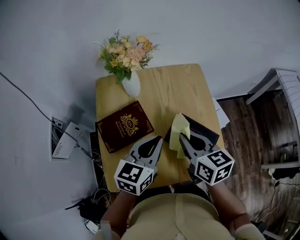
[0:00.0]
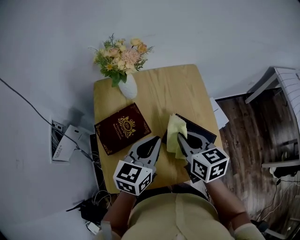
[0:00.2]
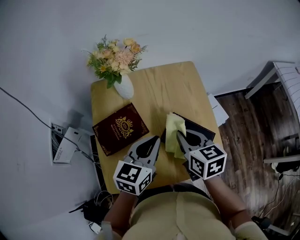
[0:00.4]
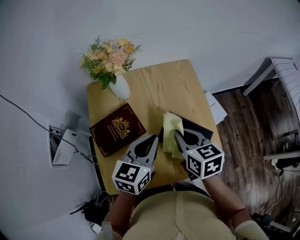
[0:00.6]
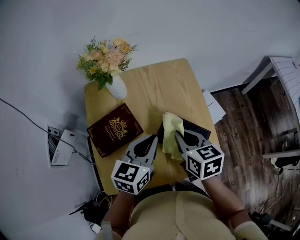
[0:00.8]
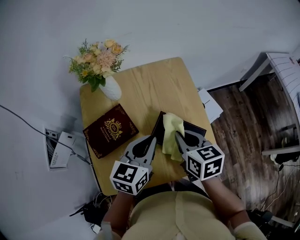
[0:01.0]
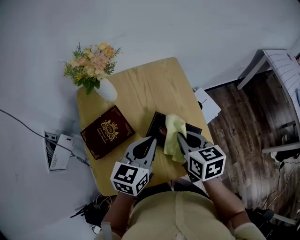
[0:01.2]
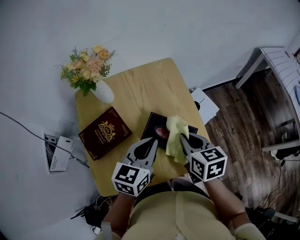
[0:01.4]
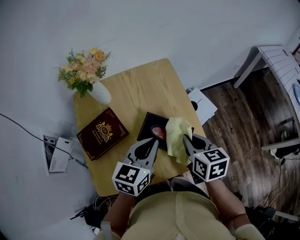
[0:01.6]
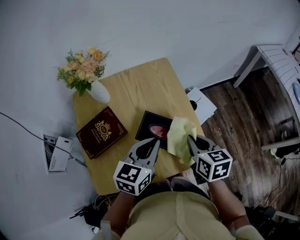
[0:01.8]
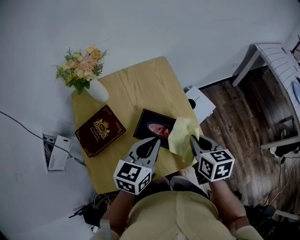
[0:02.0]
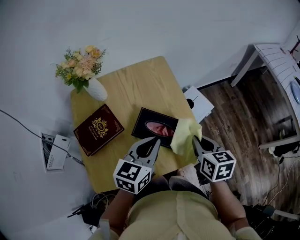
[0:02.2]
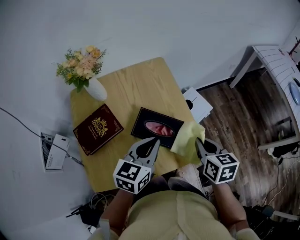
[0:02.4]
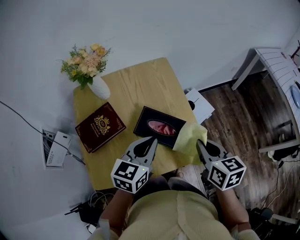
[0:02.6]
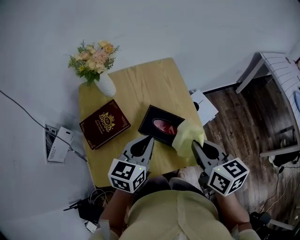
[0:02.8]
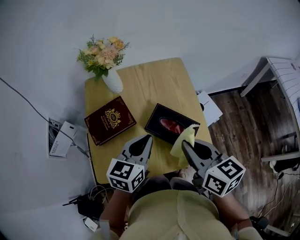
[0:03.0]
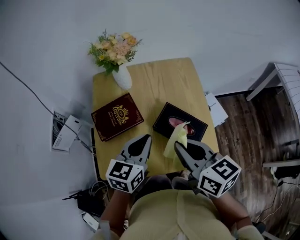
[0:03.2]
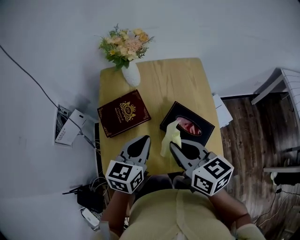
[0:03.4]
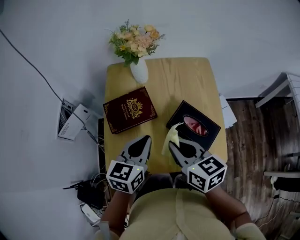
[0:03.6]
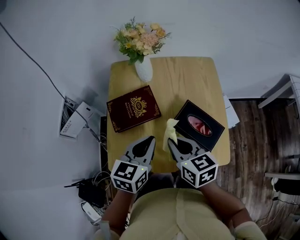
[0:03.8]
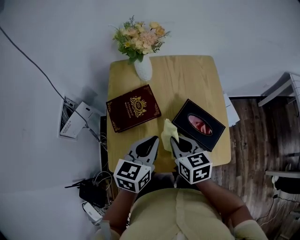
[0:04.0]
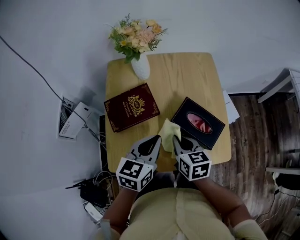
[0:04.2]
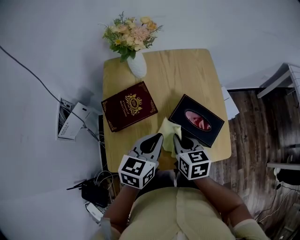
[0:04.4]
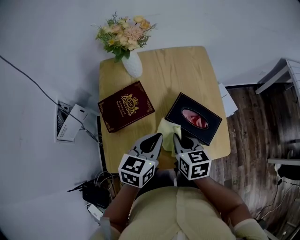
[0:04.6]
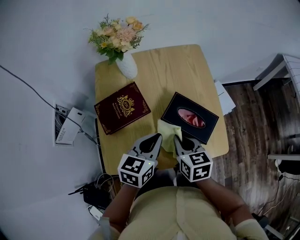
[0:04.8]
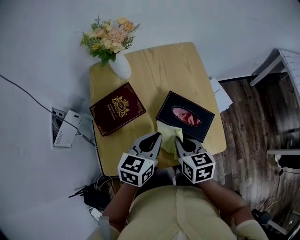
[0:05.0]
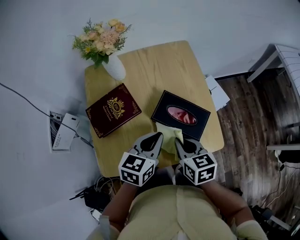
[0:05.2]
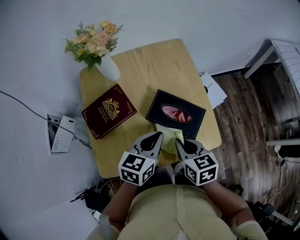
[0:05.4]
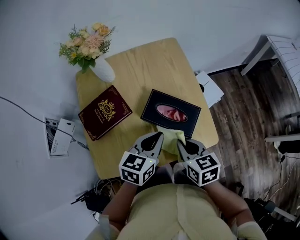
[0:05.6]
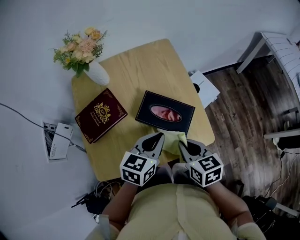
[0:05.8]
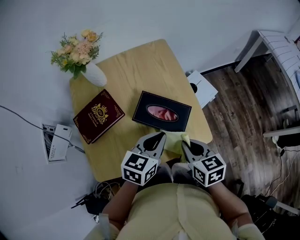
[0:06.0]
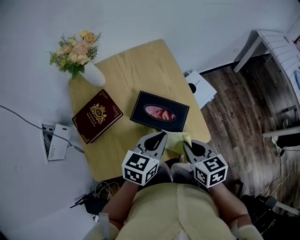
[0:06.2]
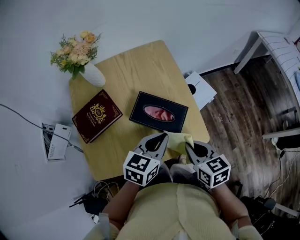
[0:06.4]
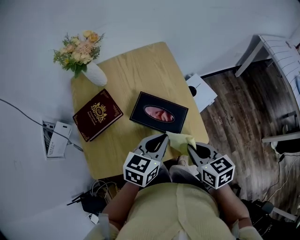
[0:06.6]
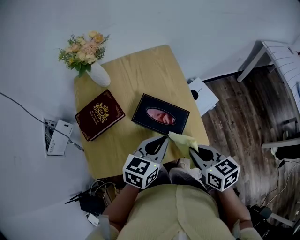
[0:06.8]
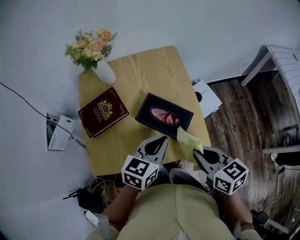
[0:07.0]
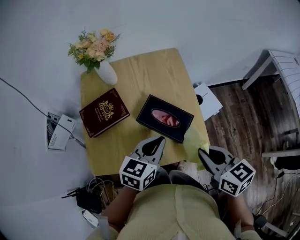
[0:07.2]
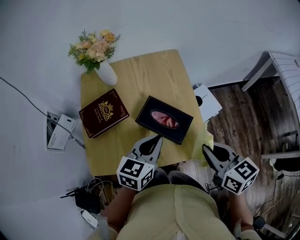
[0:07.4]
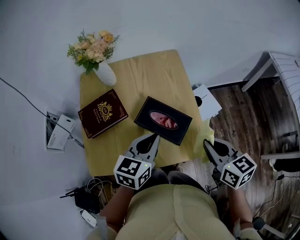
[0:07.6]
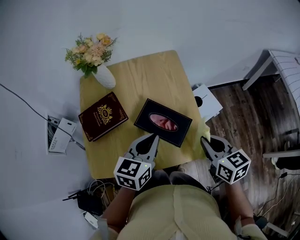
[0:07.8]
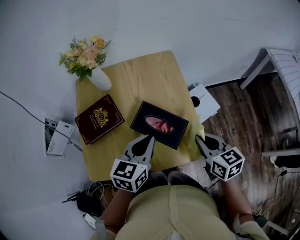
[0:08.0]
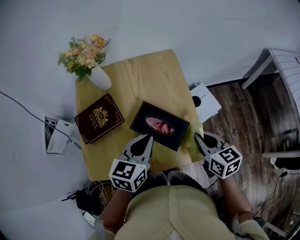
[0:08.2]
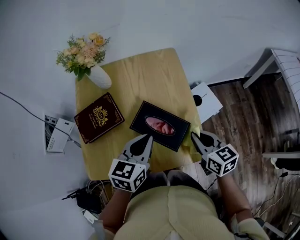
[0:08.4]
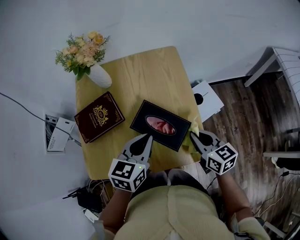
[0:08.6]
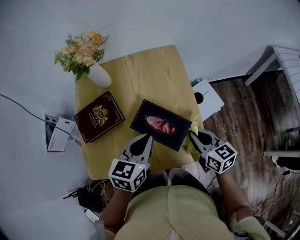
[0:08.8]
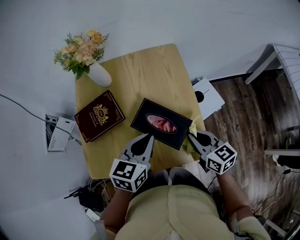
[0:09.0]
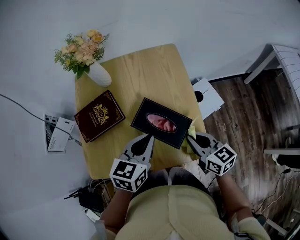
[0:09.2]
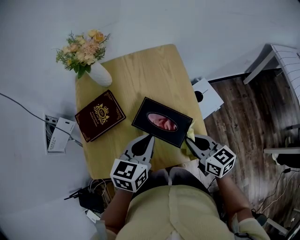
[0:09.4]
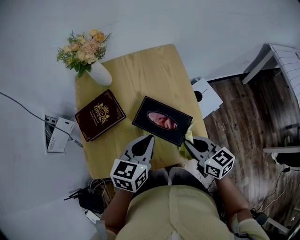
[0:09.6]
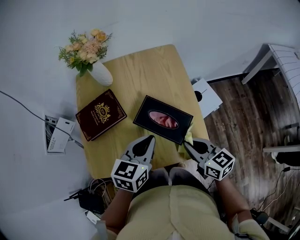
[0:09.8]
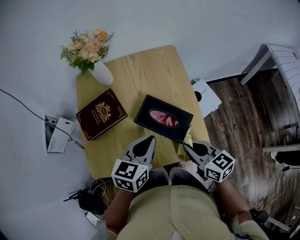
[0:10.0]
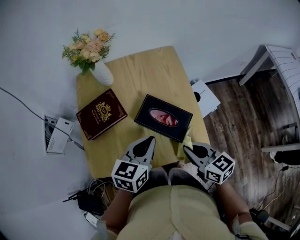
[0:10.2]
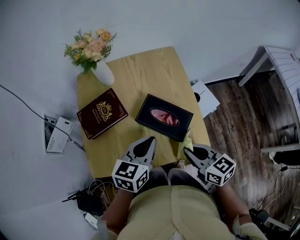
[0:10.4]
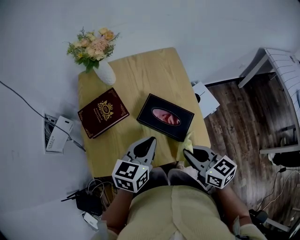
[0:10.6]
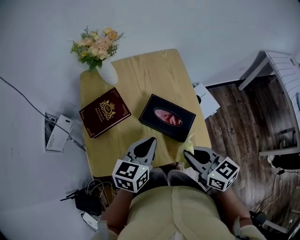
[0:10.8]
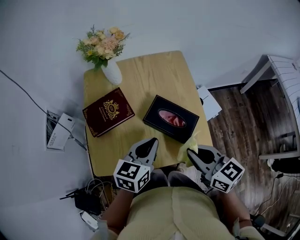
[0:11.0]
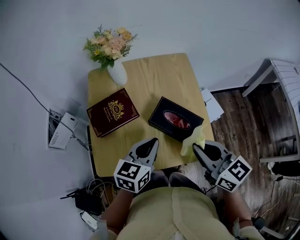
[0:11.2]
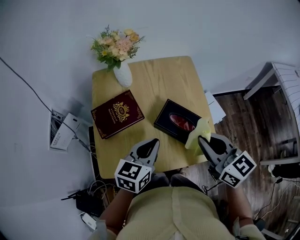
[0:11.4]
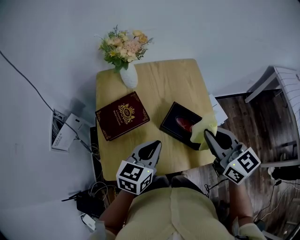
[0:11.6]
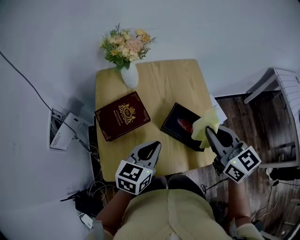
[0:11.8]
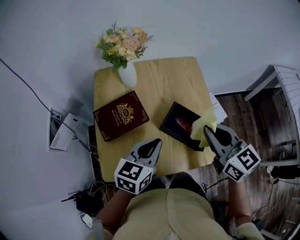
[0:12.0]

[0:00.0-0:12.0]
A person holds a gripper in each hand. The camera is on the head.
0:00.0 to 0:01.6: The two grippers go some 10 cm to the right.
0:01.6 to 0:03.0: The right gripper goes roughly 10 cm upward and backward, reaches approximately 10 cm to the right, then returns, and rotates about 20 degrees. The left gripper ends up roughly 5 cm from where it was.
0:03.0 to 0:04.4: The right gripper is displaced downward and to the left by about 20 cm. The left gripper goes about 5 cm to the left.
0:04.4 to 0:06.0: Both grippers move to the right, approximately 15 cm.
0:06.0 to 0:07.6: The right gripper heads upward and to the right, covering approximately 10 cm.
0:07.6 to 0:09.0: The right gripper moves downward and forward, about 10 cm.
0:09.0 to 0:10.4: The right gripper travels backward by roughly 10 cm.
0:10.4 to 0:12.0: The right gripper is displaced upward and forward by roughly 15 cm. Meanwhile the left gripper shifts roughly 5 cm to the left.

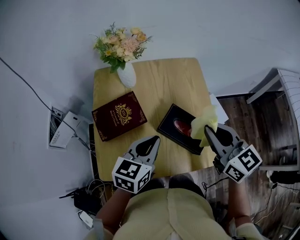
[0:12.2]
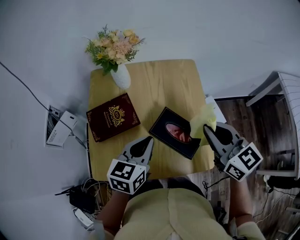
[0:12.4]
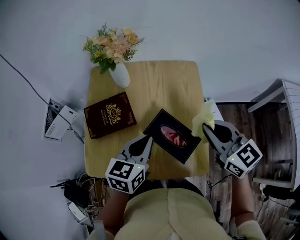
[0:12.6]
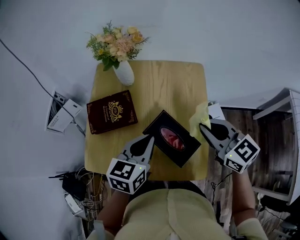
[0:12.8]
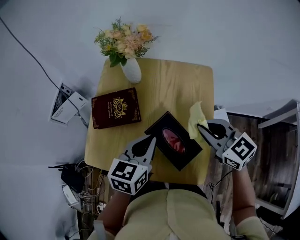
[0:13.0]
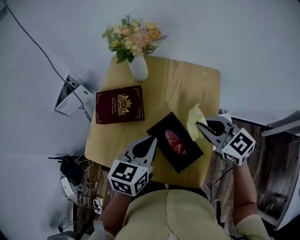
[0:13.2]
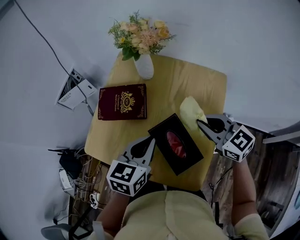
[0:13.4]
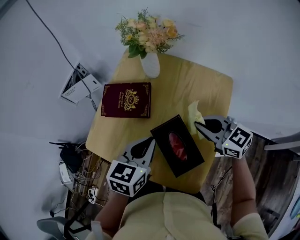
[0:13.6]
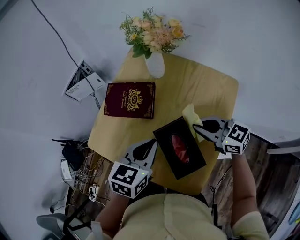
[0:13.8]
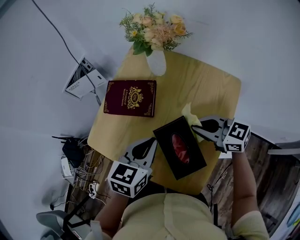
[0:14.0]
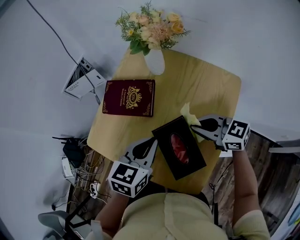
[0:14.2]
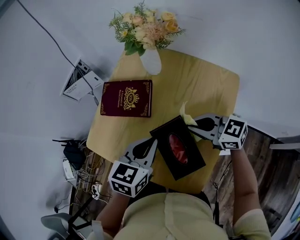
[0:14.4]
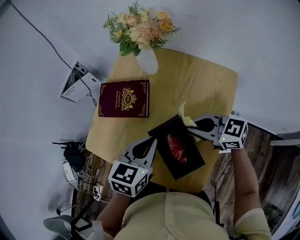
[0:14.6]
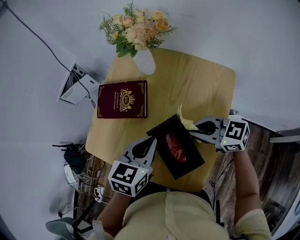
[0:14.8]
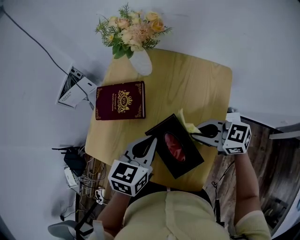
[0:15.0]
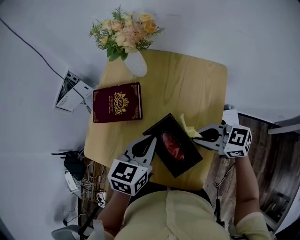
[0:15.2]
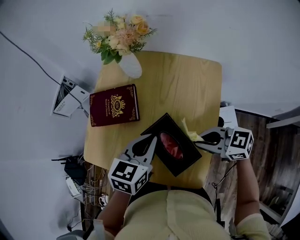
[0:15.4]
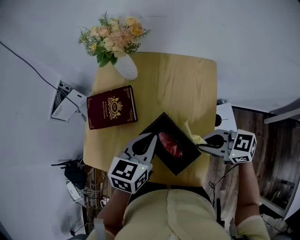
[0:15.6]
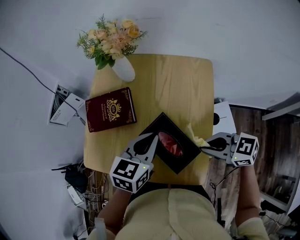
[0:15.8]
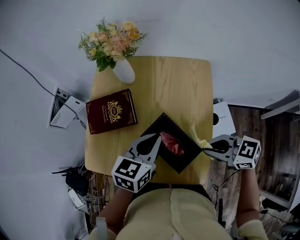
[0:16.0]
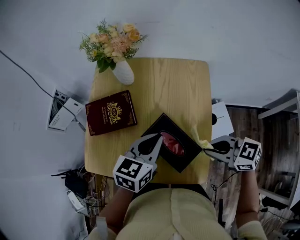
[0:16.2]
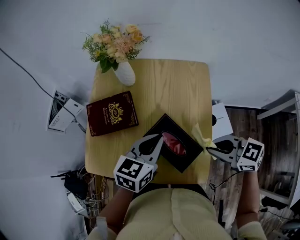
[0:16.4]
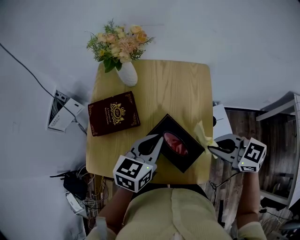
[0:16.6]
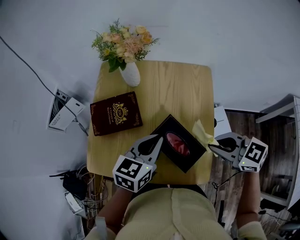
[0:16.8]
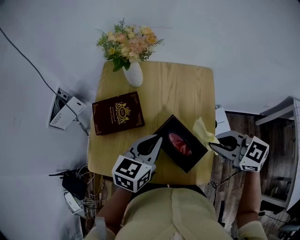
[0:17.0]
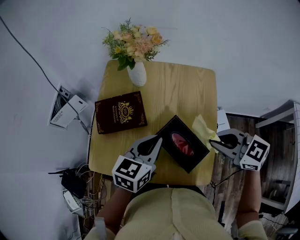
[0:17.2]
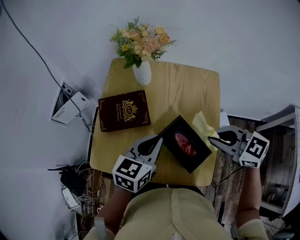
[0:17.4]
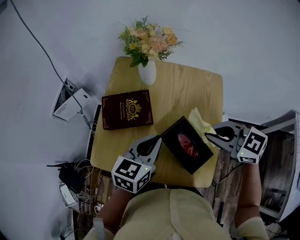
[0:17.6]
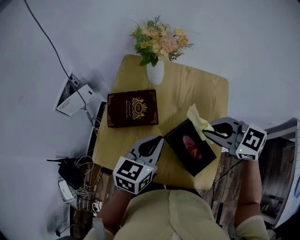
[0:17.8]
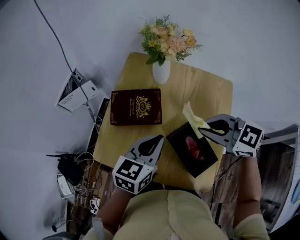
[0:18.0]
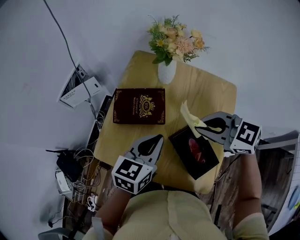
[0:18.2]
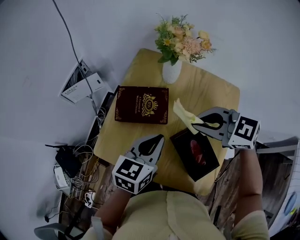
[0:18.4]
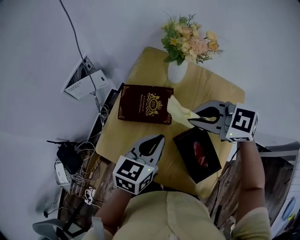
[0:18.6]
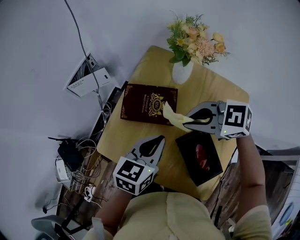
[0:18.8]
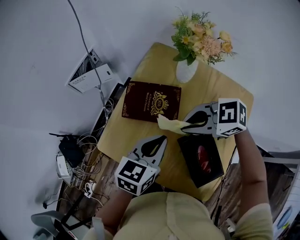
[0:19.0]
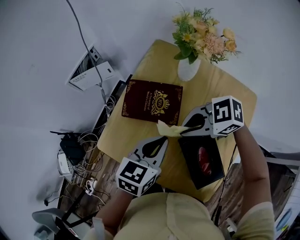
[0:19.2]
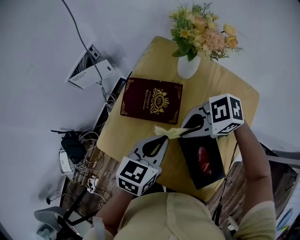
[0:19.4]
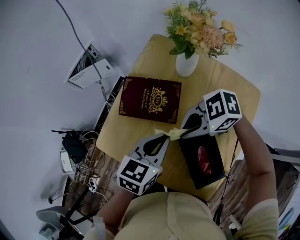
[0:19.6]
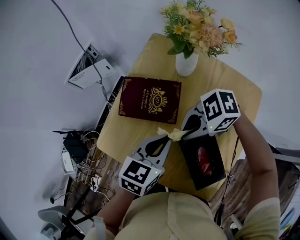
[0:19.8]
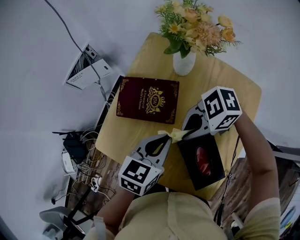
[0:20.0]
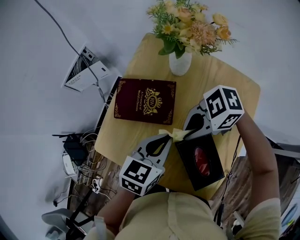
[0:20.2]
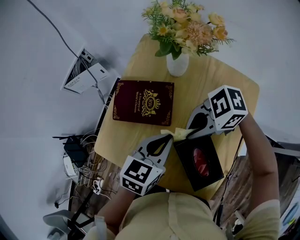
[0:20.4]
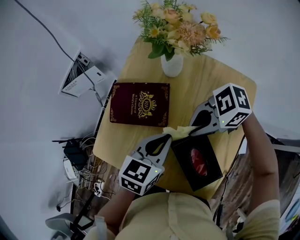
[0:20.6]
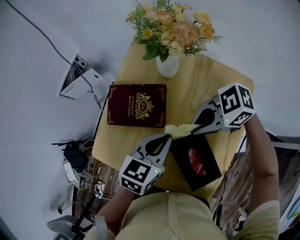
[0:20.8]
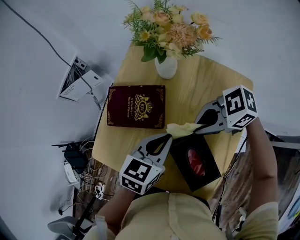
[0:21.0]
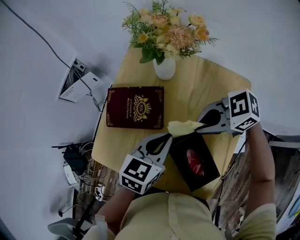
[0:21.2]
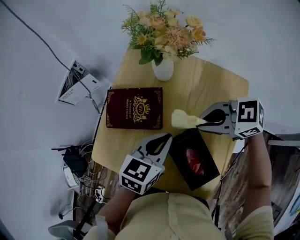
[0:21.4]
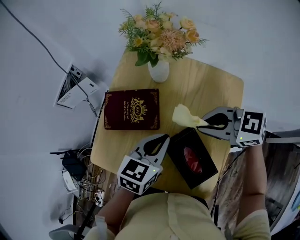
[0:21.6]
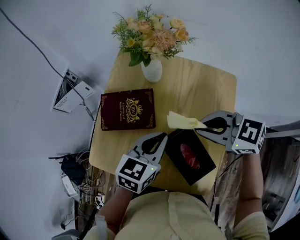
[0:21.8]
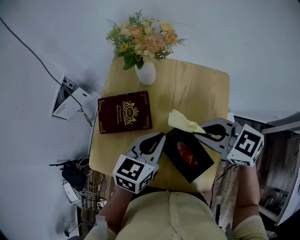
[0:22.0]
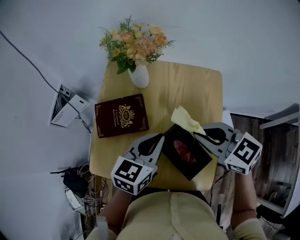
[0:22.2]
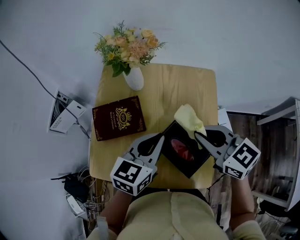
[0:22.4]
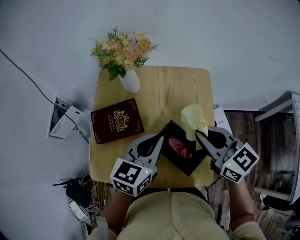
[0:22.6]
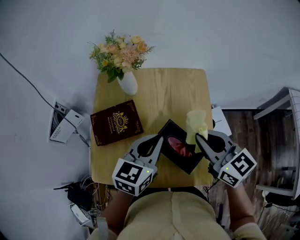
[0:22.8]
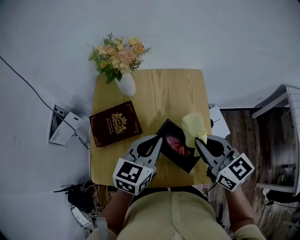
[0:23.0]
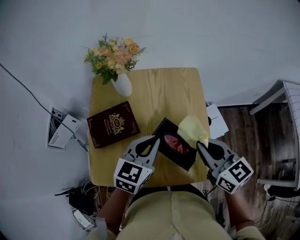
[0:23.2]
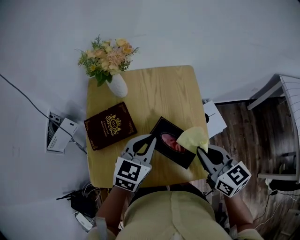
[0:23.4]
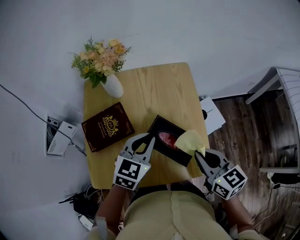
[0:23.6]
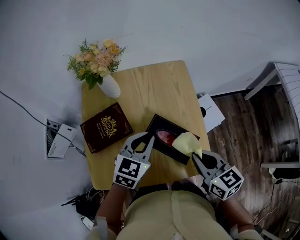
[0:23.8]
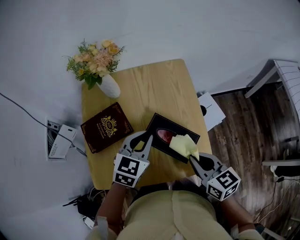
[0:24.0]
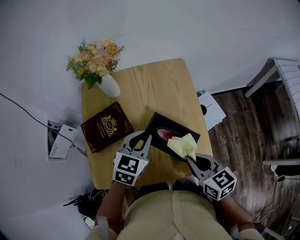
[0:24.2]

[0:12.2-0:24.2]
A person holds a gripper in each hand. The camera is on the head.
0:12.2 to 0:13.8: The right gripper travels downward by roughly 10 cm, and turns by roughly 60 degrees. Meanwhile the left gripper changes its angle by approximately 30 degrees.
0:13.8 to 0:15.2: The right gripper is displaced backward by approximately 5 cm.
0:15.2 to 0:16.6: The right gripper moves backward and upward, roughly 10 cm, and turns by roughly 20 degrees.
0:16.6 to 0:18.2: The left gripper heads to the left, covering about 10 cm. Meanwhile the right gripper moves forward and to the left, some 20 cm, and changes its angle by approximately 20 degrees.
0:18.2 to 0:19.8: The right gripper is displaced downward by roughly 10 cm, and swivels roughly 60 degrees.
0:19.8 to 0:21.2: The left gripper shifts by roughly 5 cm. Meanwhile the right gripper changes place by about 10 cm, and swivels roughly 20 degrees.
0:21.2 to 0:22.6: Both grippers travel together upward, about 10 cm. The right gripper turns by about 80 degrees.
0:22.6 to 0:24.2: The right gripper shifts about 15 cm backward and downward, and turns by approximately 30 degrees. Meanwhile the left gripper heads downward, covering about 5 cm, and changes its angle by some 20 degrees.
